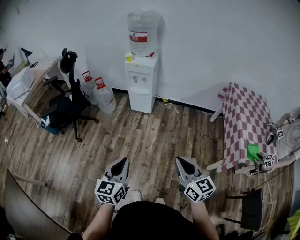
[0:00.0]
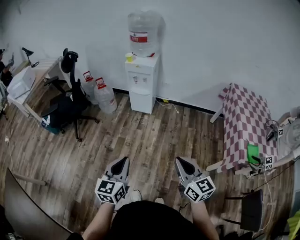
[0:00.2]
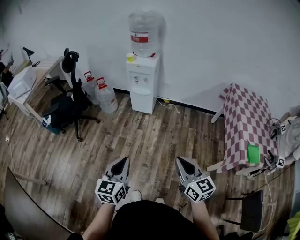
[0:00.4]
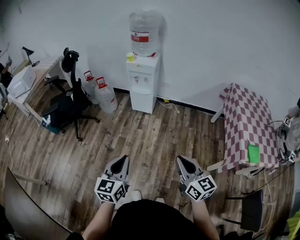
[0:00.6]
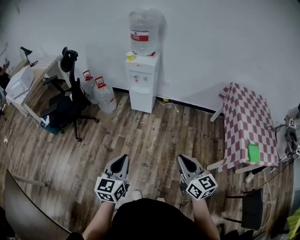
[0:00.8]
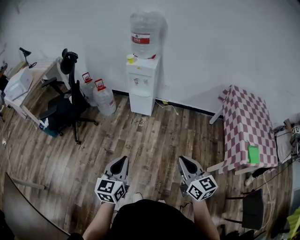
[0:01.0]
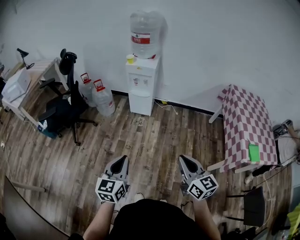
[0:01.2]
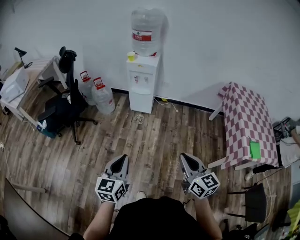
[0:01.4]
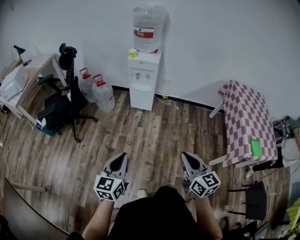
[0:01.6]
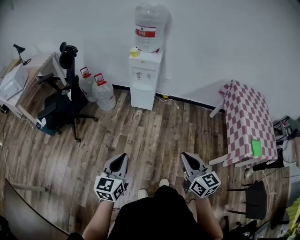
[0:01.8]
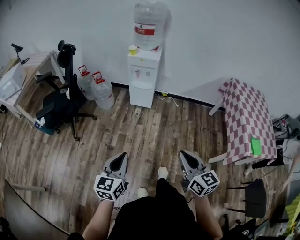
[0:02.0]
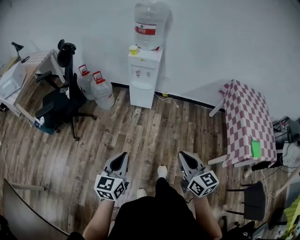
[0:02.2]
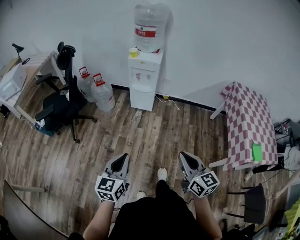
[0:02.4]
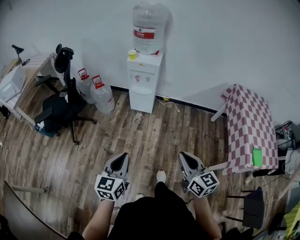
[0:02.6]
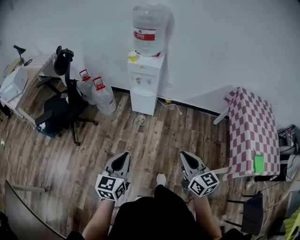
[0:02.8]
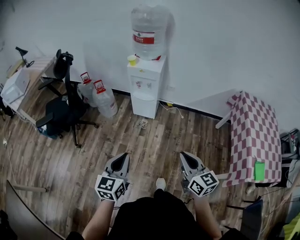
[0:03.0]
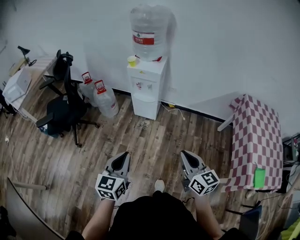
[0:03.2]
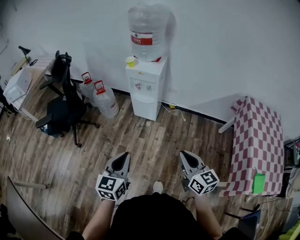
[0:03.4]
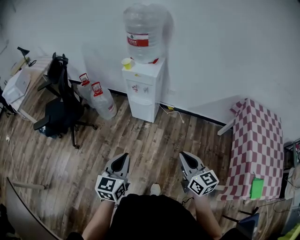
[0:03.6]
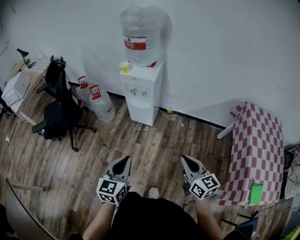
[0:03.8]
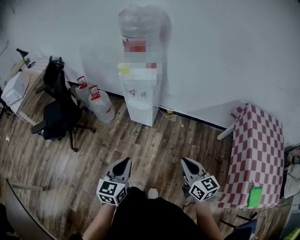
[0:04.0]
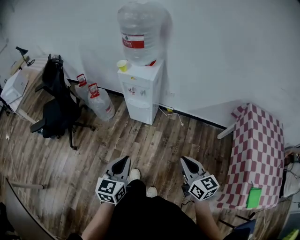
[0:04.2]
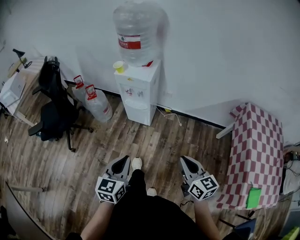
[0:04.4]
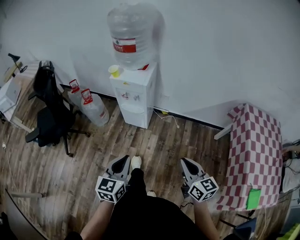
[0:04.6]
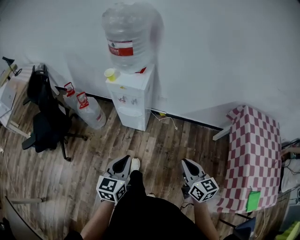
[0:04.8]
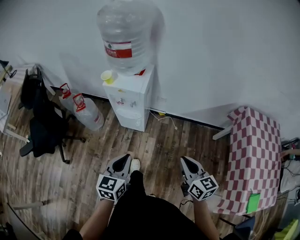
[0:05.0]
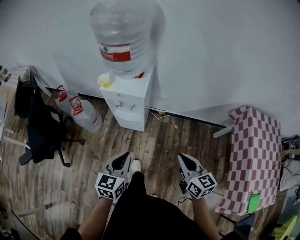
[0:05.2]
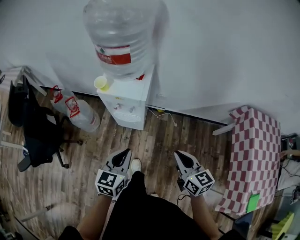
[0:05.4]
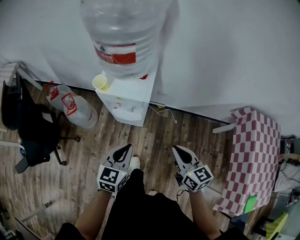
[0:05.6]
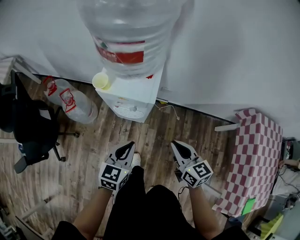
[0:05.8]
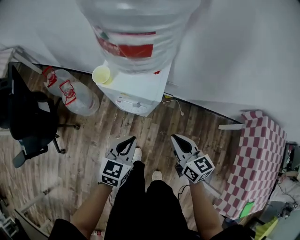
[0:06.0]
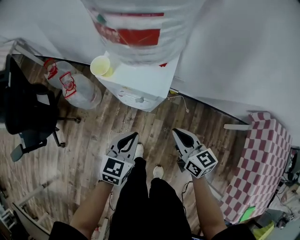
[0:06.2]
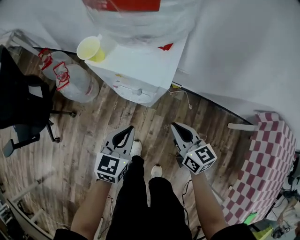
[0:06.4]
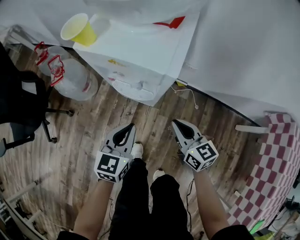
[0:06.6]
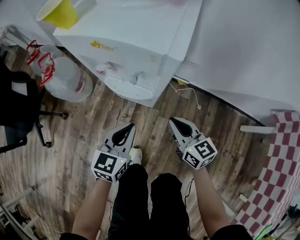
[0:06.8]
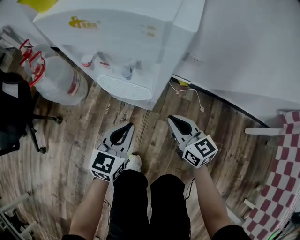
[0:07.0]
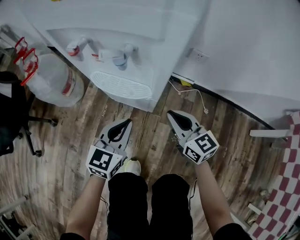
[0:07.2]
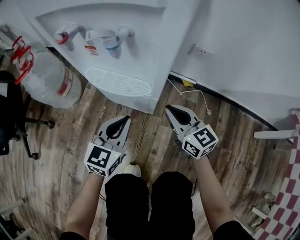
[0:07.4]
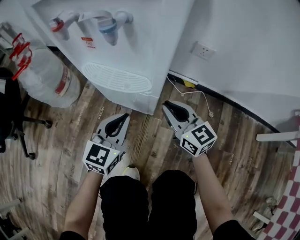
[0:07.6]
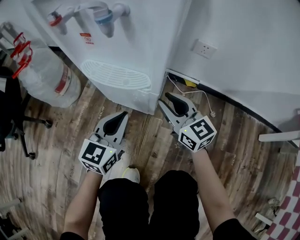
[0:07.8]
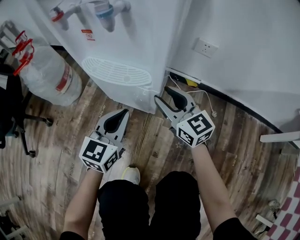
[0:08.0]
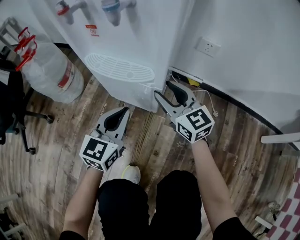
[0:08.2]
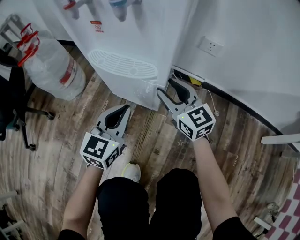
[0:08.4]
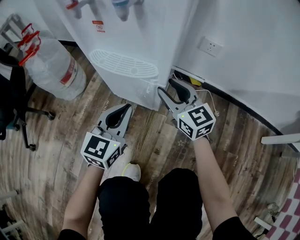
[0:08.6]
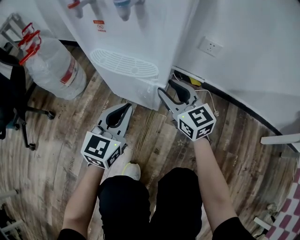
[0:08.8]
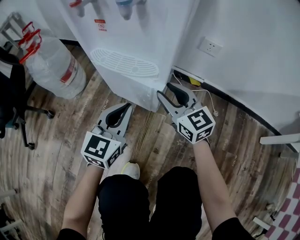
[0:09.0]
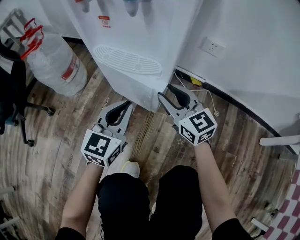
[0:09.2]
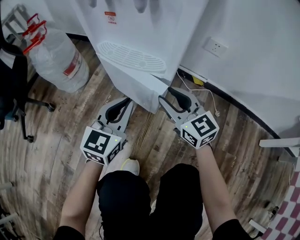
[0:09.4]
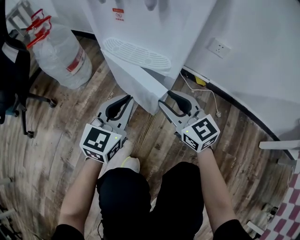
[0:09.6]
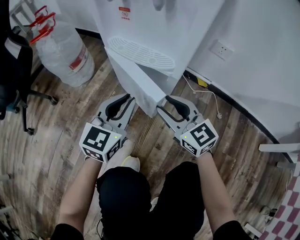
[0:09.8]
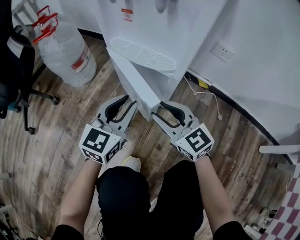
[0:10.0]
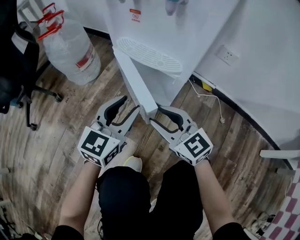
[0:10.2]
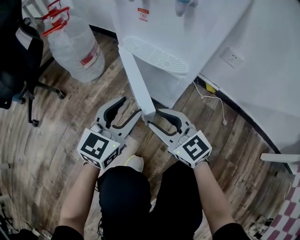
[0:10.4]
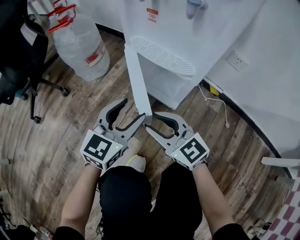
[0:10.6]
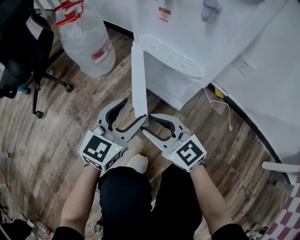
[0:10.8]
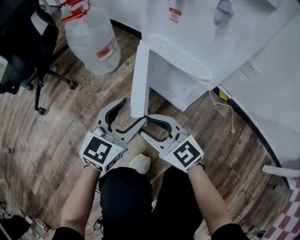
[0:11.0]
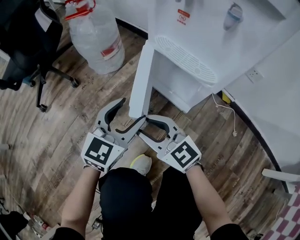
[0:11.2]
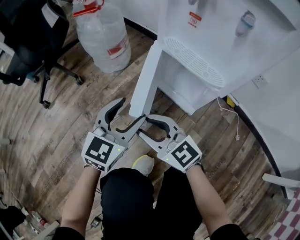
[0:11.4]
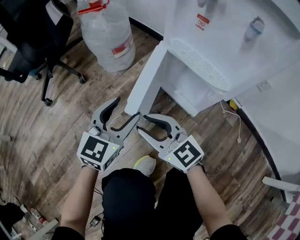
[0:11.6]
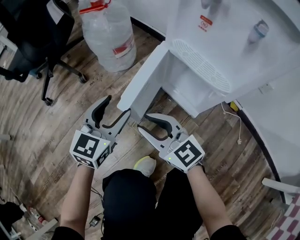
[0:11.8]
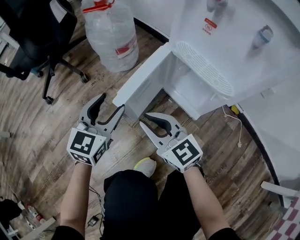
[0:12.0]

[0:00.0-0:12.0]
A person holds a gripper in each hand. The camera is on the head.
0:00.0 to 0:01.6: The grippers both shift to the left by roughly 10 cm.
0:01.6 to 0:03.0: The left gripper shifts roughly 15 cm forward and to the right. The right gripper heads forward, covering roughly 15 cm.
0:03.0 to 0:04.4: The two grippers go about 20 cm forward and to the right.
0:04.4 to 0:06.0: The two grippers go about 35 cm forward.
0:06.0 to 0:07.6: Both grippers move downward, some 50 cm. The right gripper rotates about 20 degrees.
0:07.6 to 0:09.0: The right gripper opens.
0:09.0 to 0:10.4: The right gripper moves to the left and backward, roughly 15 cm, and rotates roughly 20 degrees. The left gripper moves to the left, some 5 cm, and opens up.
0:10.4 to 0:12.0: The two grippers go about 15 cm to the left. The right gripper closes; the left gripper swivels about 20 degrees.

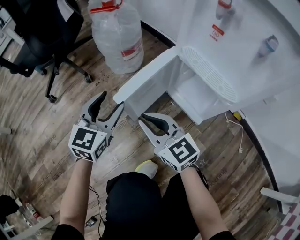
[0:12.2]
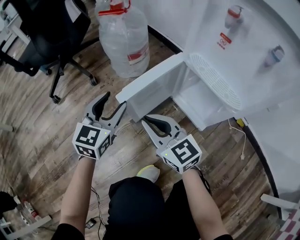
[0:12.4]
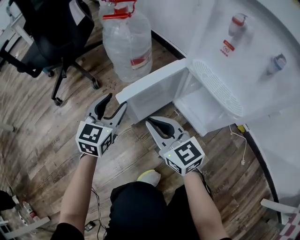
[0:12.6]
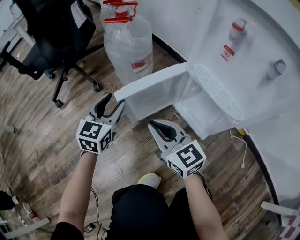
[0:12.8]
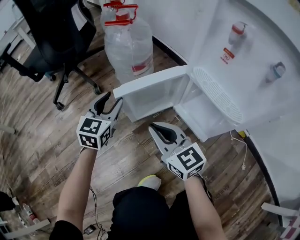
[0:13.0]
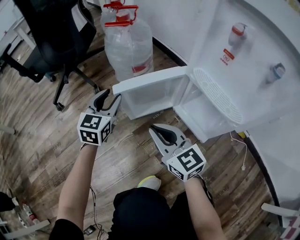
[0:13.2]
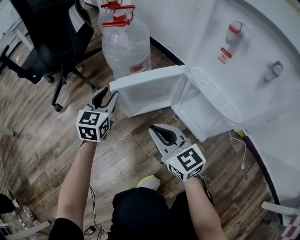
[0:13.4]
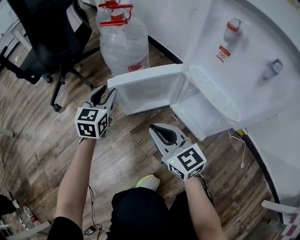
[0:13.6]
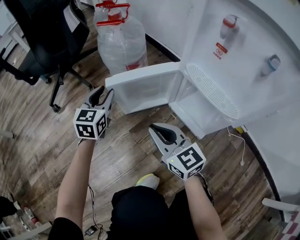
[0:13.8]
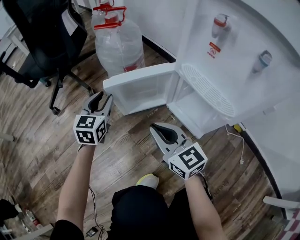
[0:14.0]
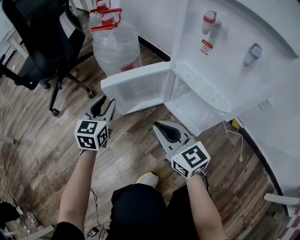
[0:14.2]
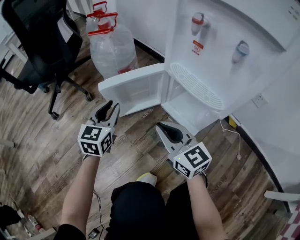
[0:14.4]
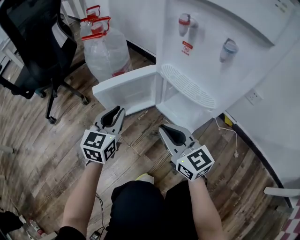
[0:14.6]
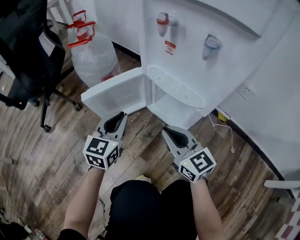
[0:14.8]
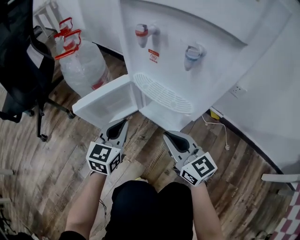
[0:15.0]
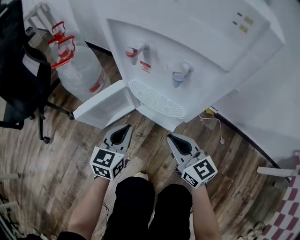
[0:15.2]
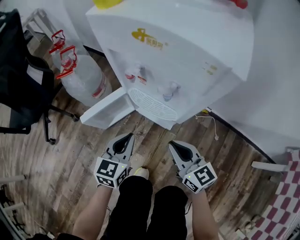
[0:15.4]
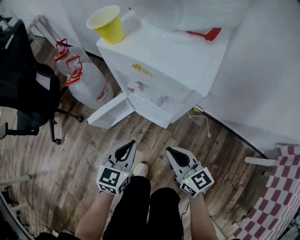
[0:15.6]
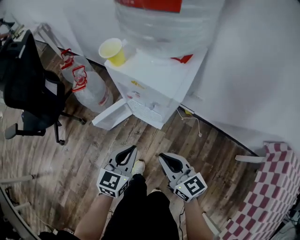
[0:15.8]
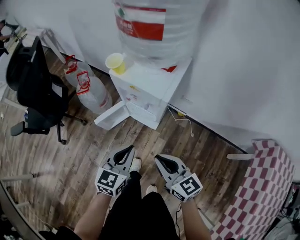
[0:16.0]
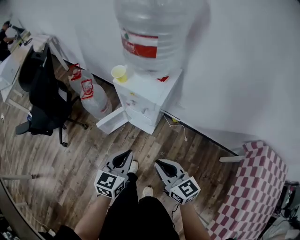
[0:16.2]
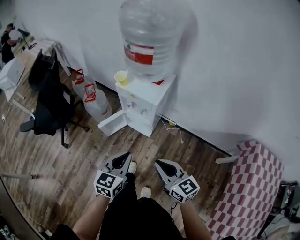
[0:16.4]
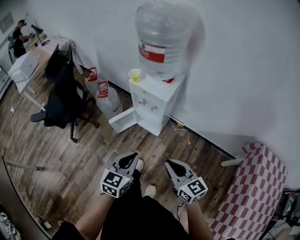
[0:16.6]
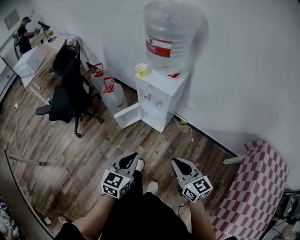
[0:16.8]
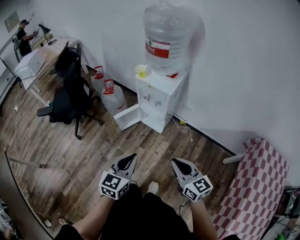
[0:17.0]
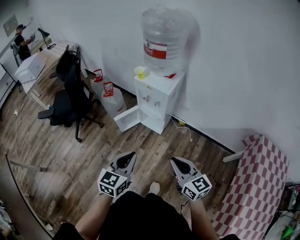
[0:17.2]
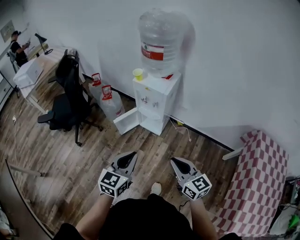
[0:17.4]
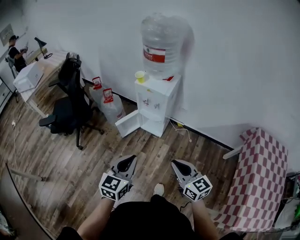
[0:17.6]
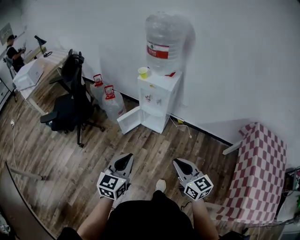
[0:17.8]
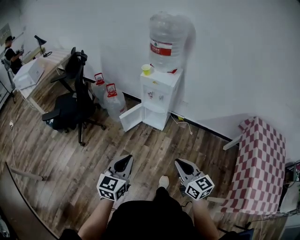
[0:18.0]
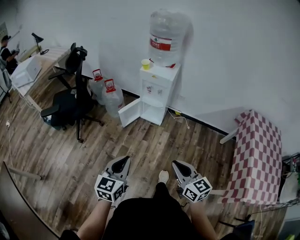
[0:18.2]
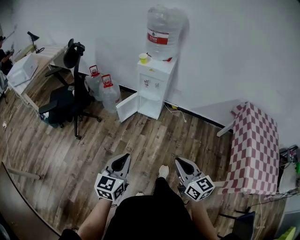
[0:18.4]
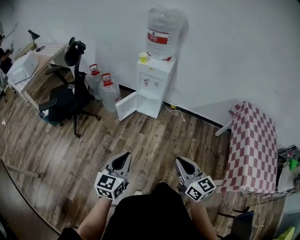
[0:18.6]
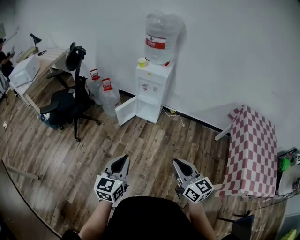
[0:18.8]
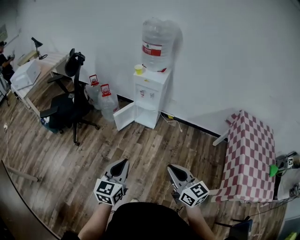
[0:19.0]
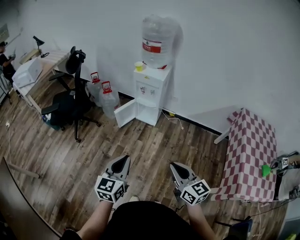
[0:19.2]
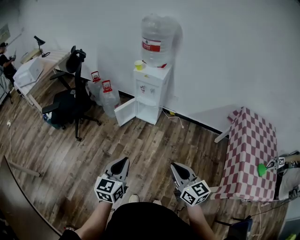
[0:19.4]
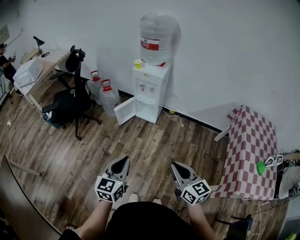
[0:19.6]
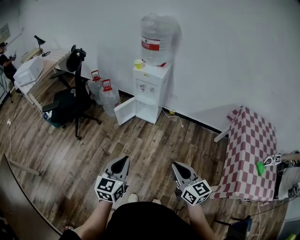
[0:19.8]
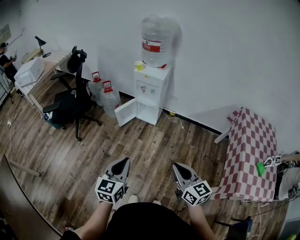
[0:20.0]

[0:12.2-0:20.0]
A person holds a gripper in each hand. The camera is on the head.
0:12.2 to 0:13.8: The left gripper moves forward, roughly 10 cm, and closes up.
0:13.8 to 0:15.4: The right gripper ends up about 25 cm from where it was, and turns by about 30 degrees. Meanwhile the left gripper shifts by roughly 30 cm, rotates approximately 30 degrees, and closes.
0:15.4 to 0:16.8: Both grippers move upward and backward, roughly 50 cm.
0:16.8 to 0:18.4: The two grippers go some 30 cm backward and to the left.
0:18.4 to 0:20.0: The two grippers go about 10 cm to the right and backward.

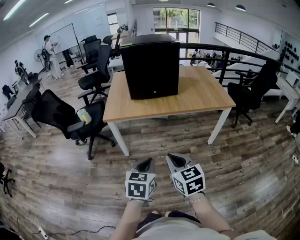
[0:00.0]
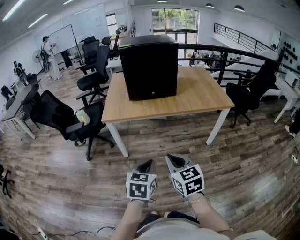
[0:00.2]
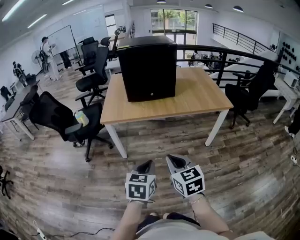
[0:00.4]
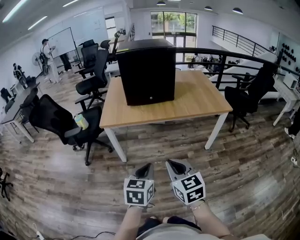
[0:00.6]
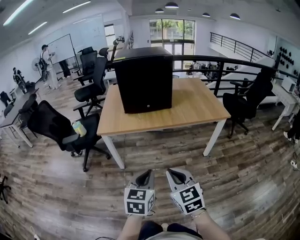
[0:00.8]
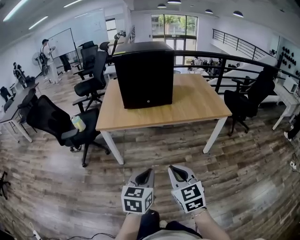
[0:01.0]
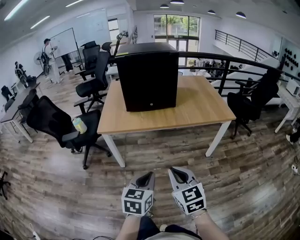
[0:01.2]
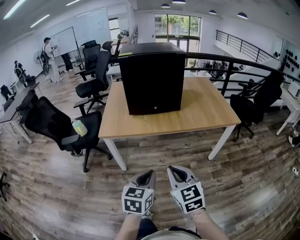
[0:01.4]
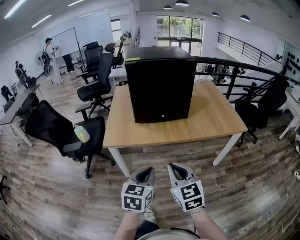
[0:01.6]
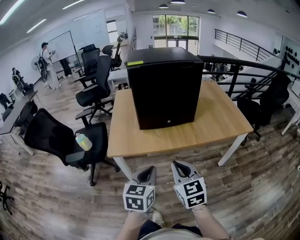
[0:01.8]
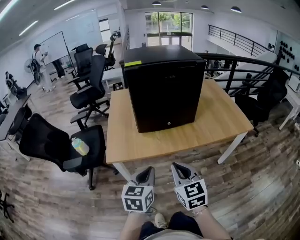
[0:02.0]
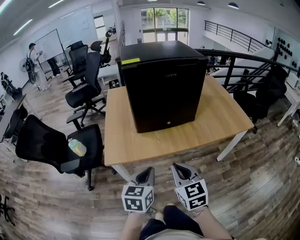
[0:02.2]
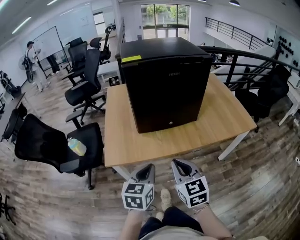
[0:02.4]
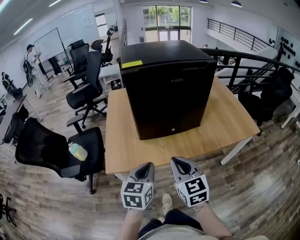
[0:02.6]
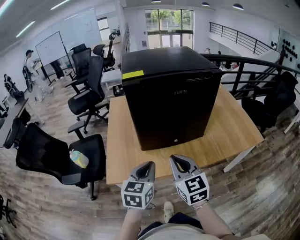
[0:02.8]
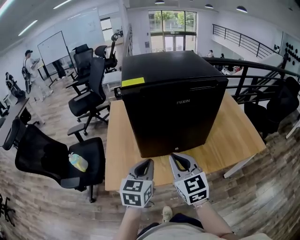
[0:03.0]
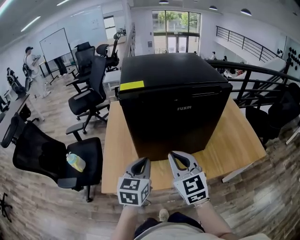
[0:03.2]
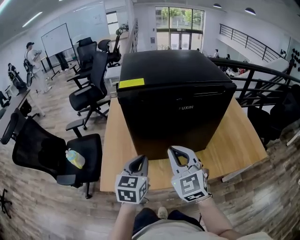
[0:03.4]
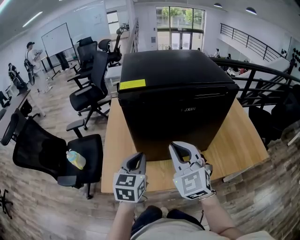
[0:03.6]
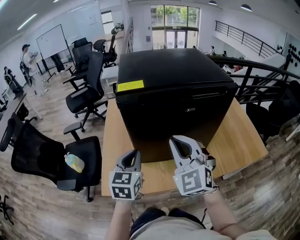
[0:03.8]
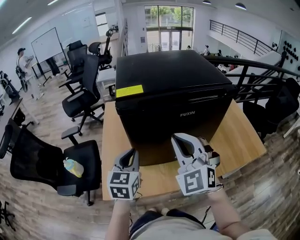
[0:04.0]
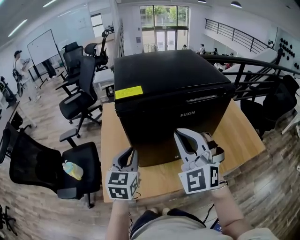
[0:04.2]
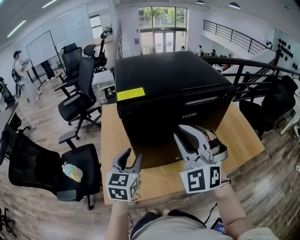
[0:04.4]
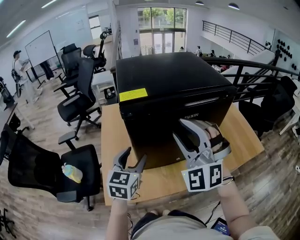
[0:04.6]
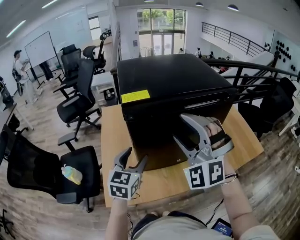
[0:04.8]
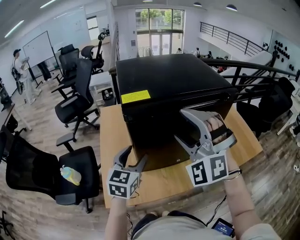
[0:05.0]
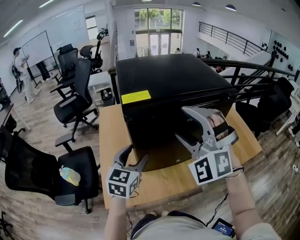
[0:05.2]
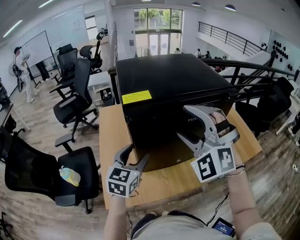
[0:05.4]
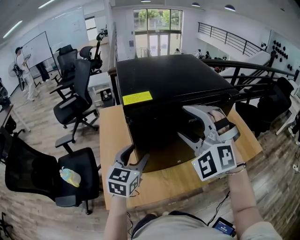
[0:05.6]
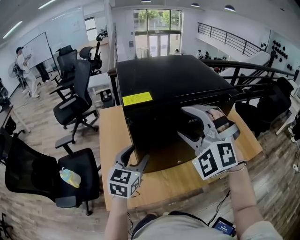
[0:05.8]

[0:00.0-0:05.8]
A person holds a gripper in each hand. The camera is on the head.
0:00.0 to 0:01.4: Both grippers travel together forward, roughly 10 cm.
0:01.4 to 0:02.8: The pair of grippers is taken forward, some 40 cm.
0:02.8 to 0:04.4: The left gripper heads forward, covering roughly 20 cm, and opens up. The right gripper travels forward and upward by some 20 cm, and rotates around the line of its fingers by approximately 60 degrees, counterclockwise from behind.
0:04.4 to 0:05.8: The left gripper opens, while the right gripper rotates approximately 20 degrees, and opens.
